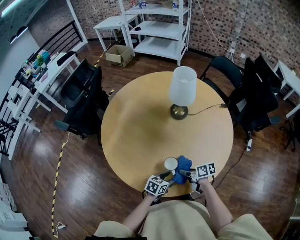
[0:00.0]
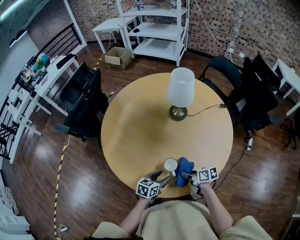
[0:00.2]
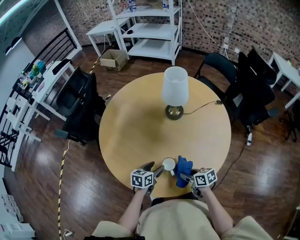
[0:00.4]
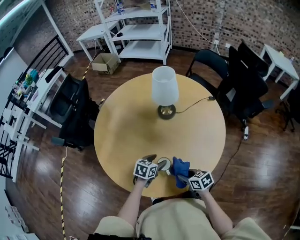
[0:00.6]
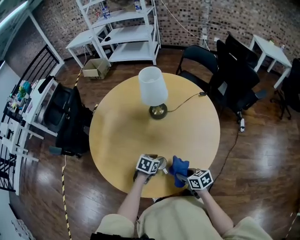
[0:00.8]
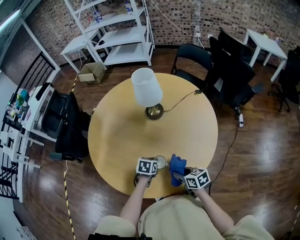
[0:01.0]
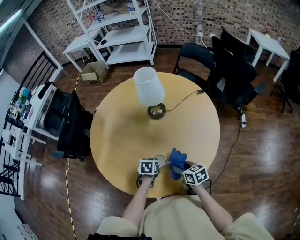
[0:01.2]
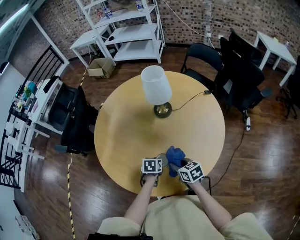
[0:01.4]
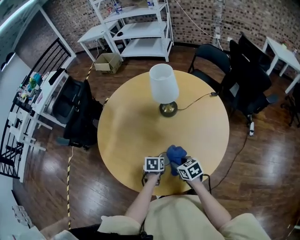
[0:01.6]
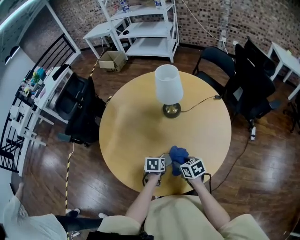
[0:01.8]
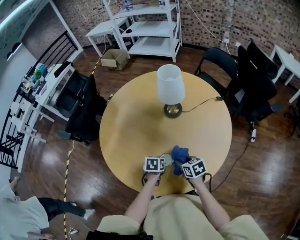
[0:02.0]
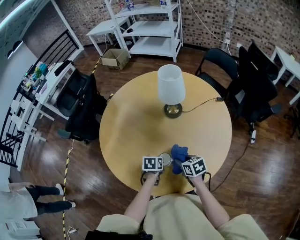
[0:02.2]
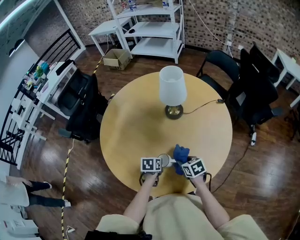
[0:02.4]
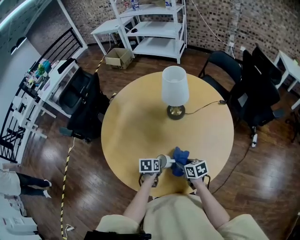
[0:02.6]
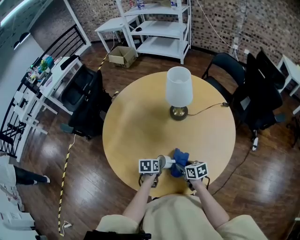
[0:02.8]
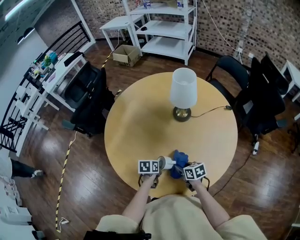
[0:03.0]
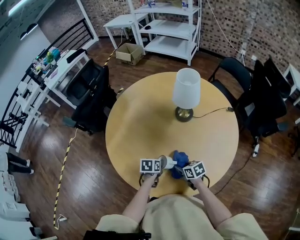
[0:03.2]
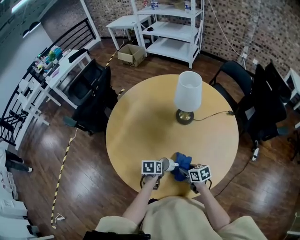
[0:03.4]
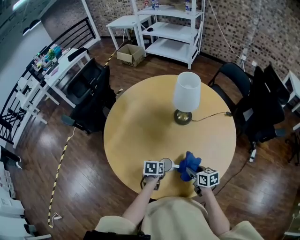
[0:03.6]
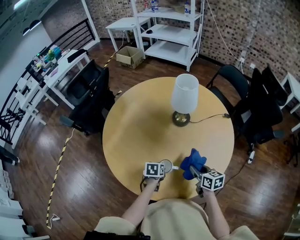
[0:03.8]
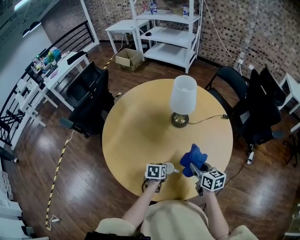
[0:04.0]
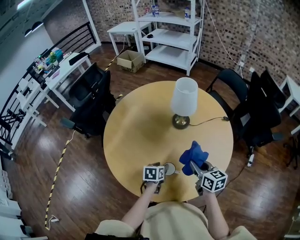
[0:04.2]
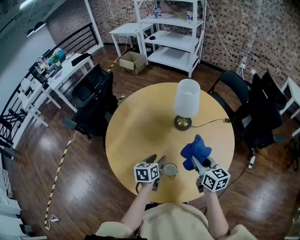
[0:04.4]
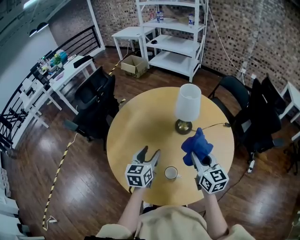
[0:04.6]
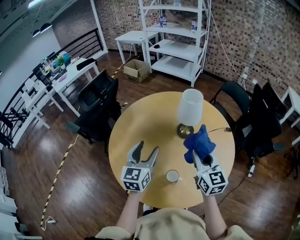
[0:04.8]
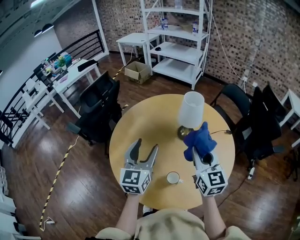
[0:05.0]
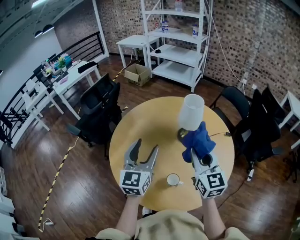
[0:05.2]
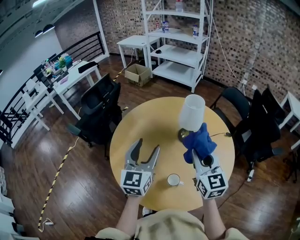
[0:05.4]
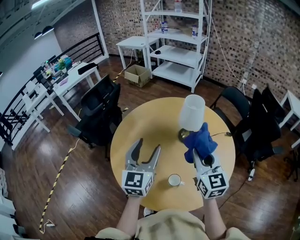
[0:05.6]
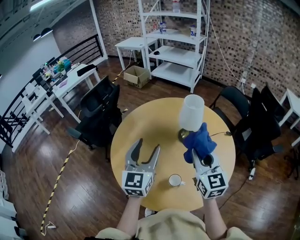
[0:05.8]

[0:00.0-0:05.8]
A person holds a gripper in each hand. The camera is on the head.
0:00.0 to 0:01.4: The left gripper moves about 10 cm, changes its angle by roughly 30 degrees, and closes its fingers; the right gripper is displaced upward by some 5 cm, and turns by roughly 30 degrees.
0:01.4 to 0:02.8: The right gripper ends up roughly 5 cm from where it was.
0:02.8 to 0:04.4: The grippers both shift upward by some 15 cm. The left gripper rotates about 30 degrees, and opens. The right gripper turns by some 30 degrees.
0:04.4 to 0:05.8: The right gripper is displaced upward by some 15 cm, and swivels approximately 30 degrees, while the left gripper travels upward by about 25 cm, and points its fingers some 30 degrees further upward.

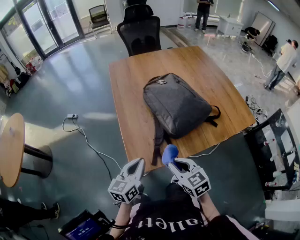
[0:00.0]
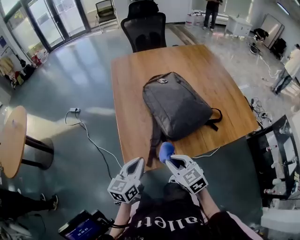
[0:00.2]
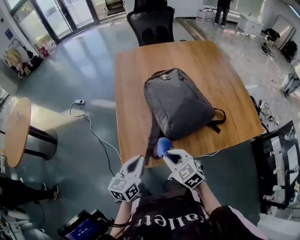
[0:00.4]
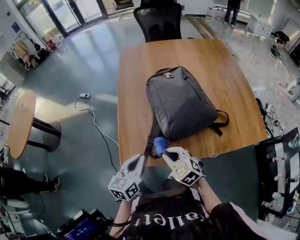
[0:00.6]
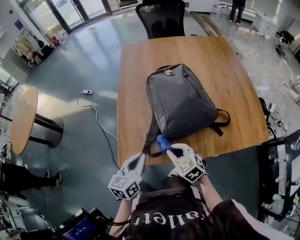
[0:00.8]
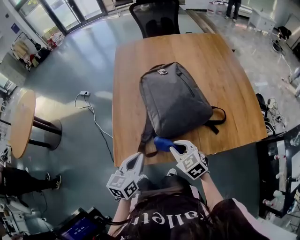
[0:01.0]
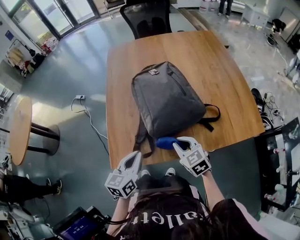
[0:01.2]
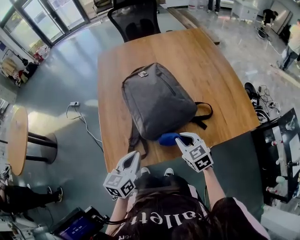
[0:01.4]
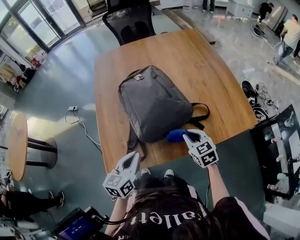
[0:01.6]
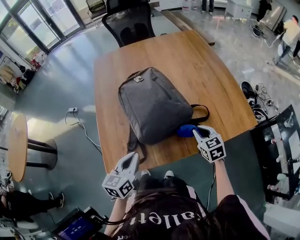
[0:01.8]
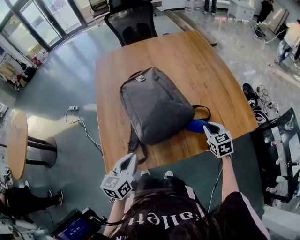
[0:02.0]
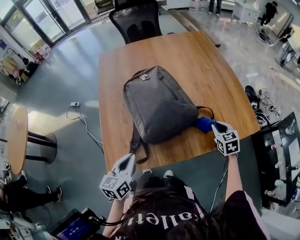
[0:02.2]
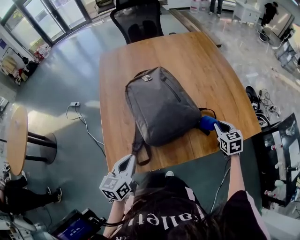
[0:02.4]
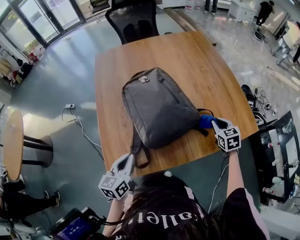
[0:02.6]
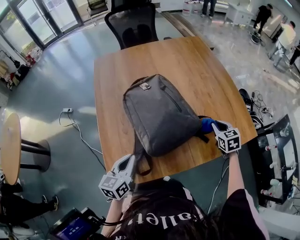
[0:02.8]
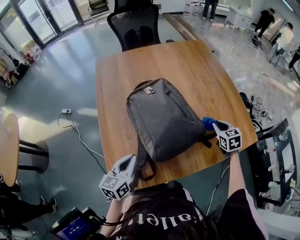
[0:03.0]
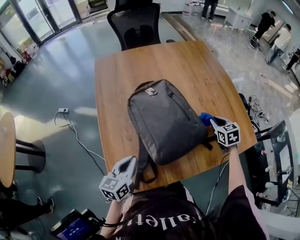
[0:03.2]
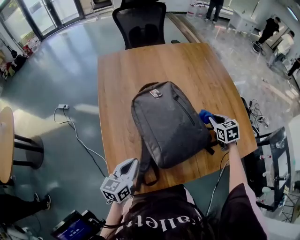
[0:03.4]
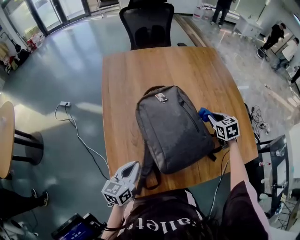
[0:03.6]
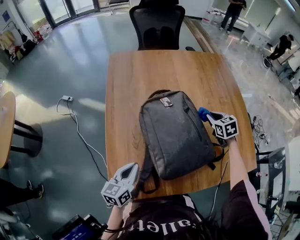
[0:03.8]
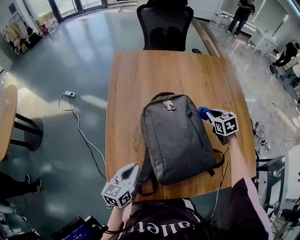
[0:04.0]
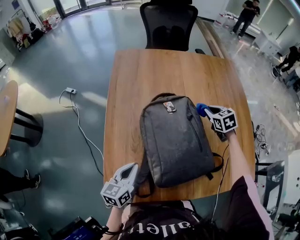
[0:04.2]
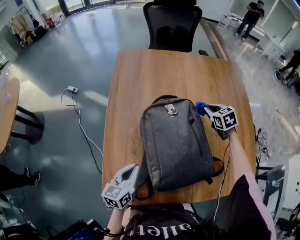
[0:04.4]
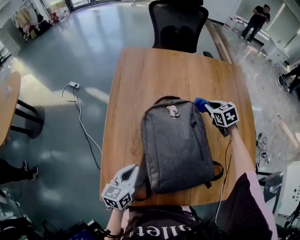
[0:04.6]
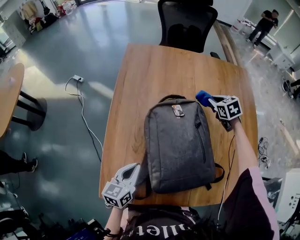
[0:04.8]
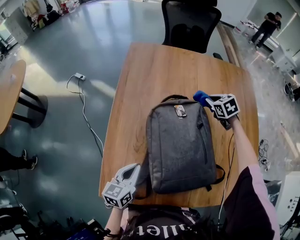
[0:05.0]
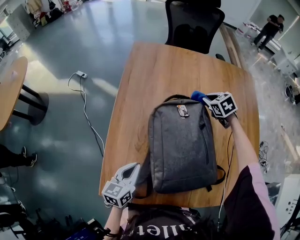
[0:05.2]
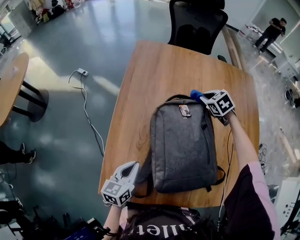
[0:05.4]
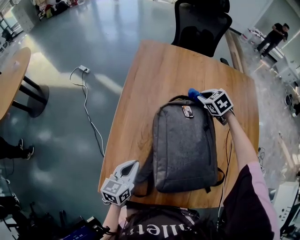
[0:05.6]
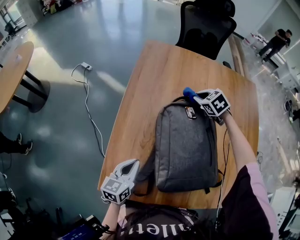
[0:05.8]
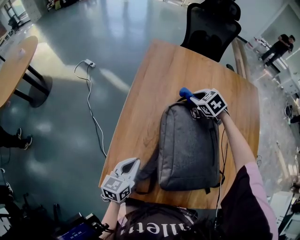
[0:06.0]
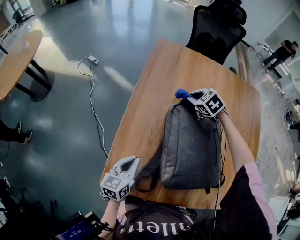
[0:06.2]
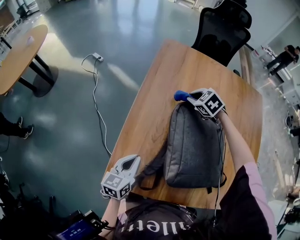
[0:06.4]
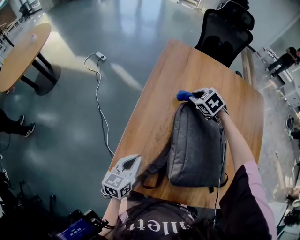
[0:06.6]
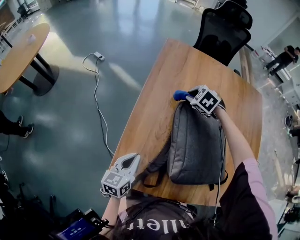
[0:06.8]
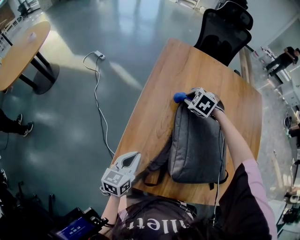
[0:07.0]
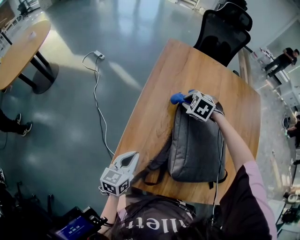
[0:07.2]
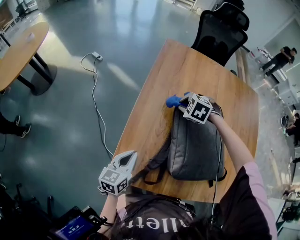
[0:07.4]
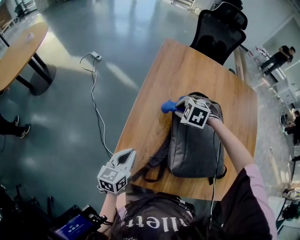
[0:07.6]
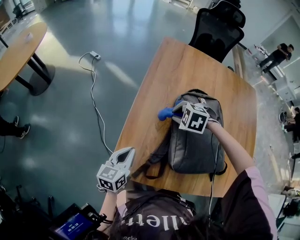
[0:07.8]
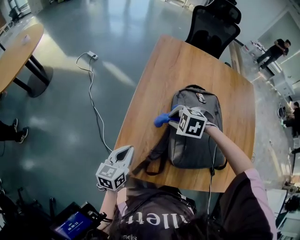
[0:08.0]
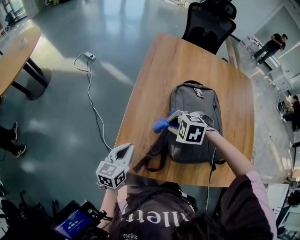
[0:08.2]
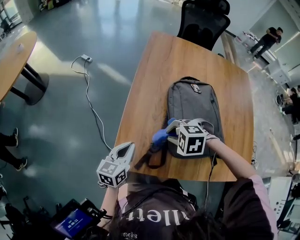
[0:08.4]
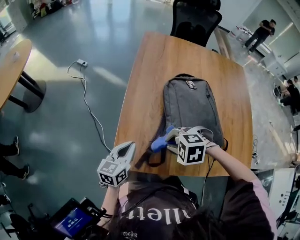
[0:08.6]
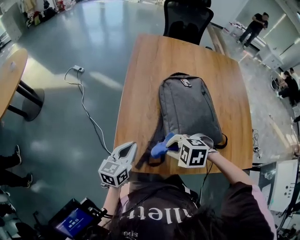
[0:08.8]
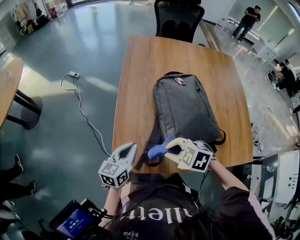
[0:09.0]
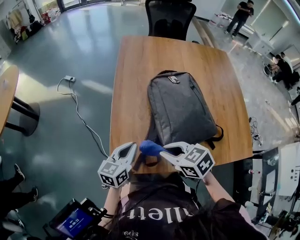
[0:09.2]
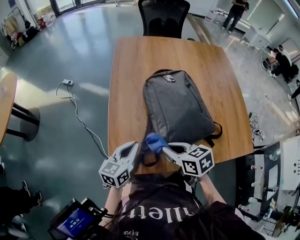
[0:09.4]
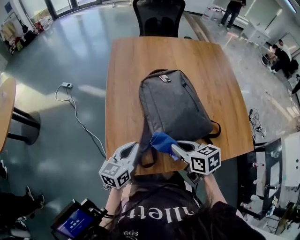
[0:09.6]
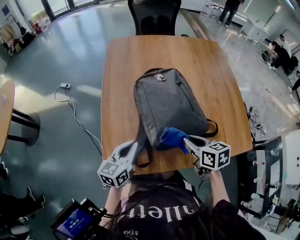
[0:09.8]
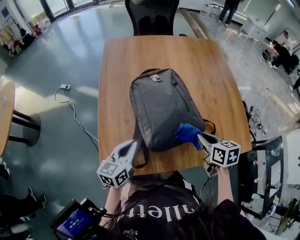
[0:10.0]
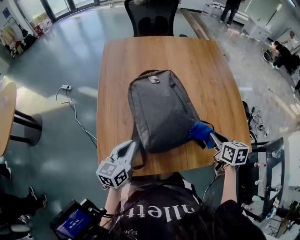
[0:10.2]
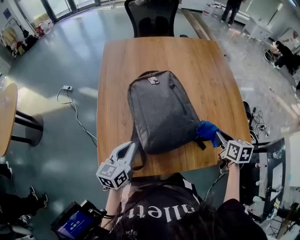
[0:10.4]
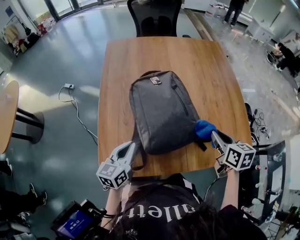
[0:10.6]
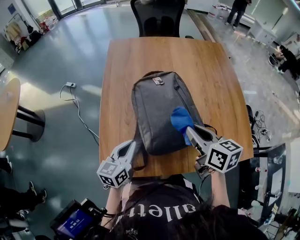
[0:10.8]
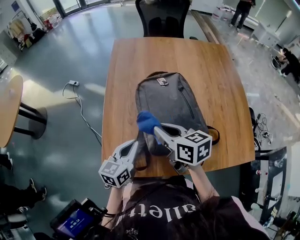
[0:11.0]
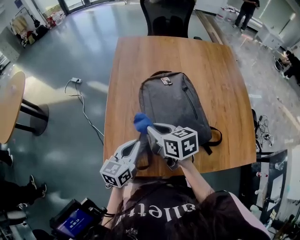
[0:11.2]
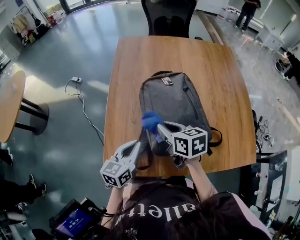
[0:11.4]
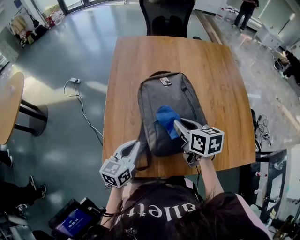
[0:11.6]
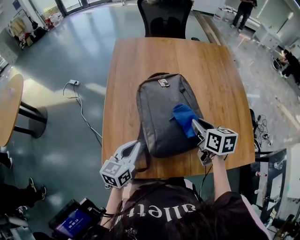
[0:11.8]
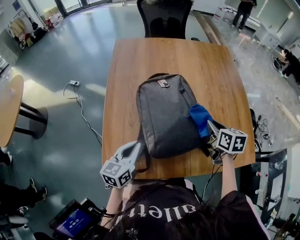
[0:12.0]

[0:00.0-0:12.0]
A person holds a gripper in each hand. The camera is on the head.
0:00.0 to 0:01.6: The left gripper travels to the right by some 20 cm. Meanwhile the right gripper shifts about 30 cm to the right and forward.
0:01.6 to 0:03.0: The right gripper is displaced forward and to the right by approximately 20 cm, while the left gripper heads forward and to the left, covering about 10 cm.
0:03.0 to 0:04.4: The left gripper shifts roughly 5 cm forward; the right gripper moves forward and to the left, some 30 cm, and rotates some 30 degrees.
0:04.4 to 0:06.0: The left gripper heads to the left, covering roughly 5 cm. The right gripper goes approximately 25 cm to the left, and changes its angle by roughly 30 degrees.
0:06.0 to 0:07.6: The left gripper ends up some 10 cm from where it was. The right gripper shifts by about 20 cm, and rotates some 30 degrees.
0:07.6 to 0:09.0: The right gripper moves about 30 cm, and swivels approximately 30 degrees. The left gripper changes place by roughly 5 cm.
0:09.0 to 0:10.4: The left gripper shifts by roughly 10 cm. Meanwhile the right gripper ends up about 40 cm from where it was, and rotates around the line of its fingers by some 70 degrees, clockwise from behind.
0:10.4 to 0:12.0: The right gripper heads forward, covering some 10 cm, and travels to the left and back again, approximately 35 cm each way.

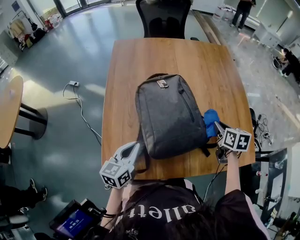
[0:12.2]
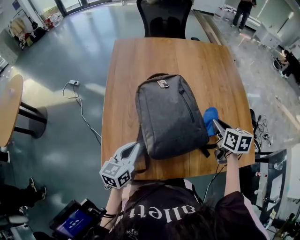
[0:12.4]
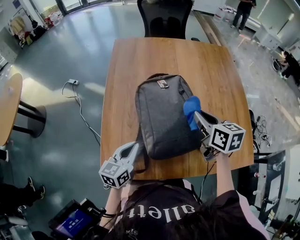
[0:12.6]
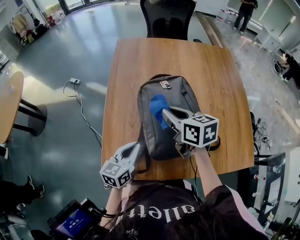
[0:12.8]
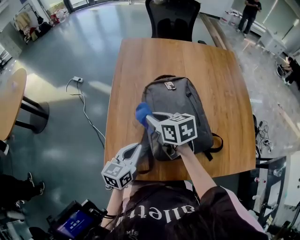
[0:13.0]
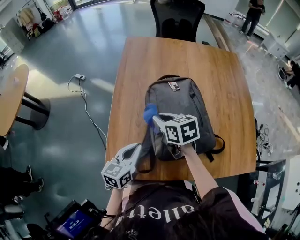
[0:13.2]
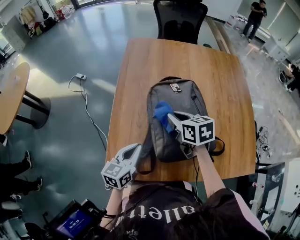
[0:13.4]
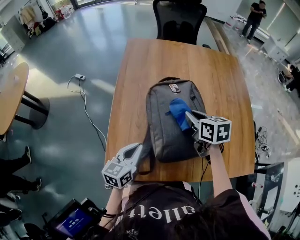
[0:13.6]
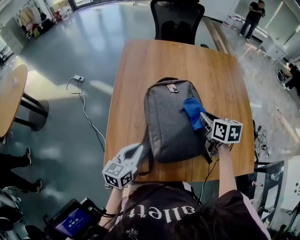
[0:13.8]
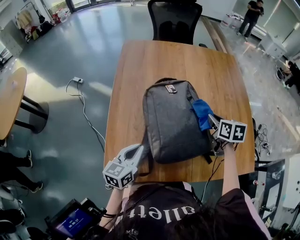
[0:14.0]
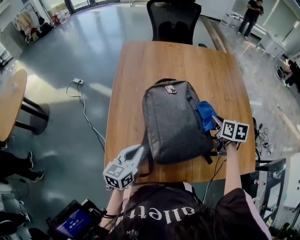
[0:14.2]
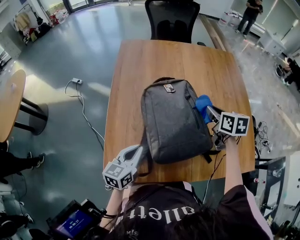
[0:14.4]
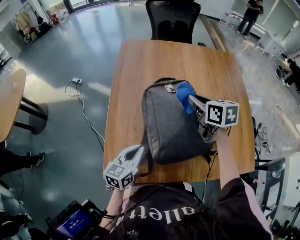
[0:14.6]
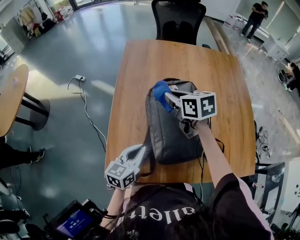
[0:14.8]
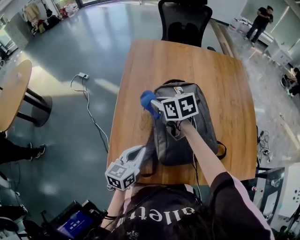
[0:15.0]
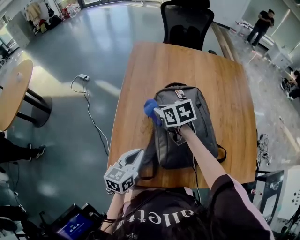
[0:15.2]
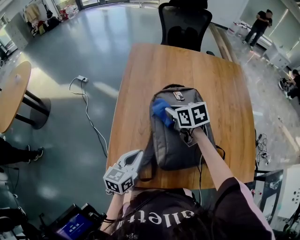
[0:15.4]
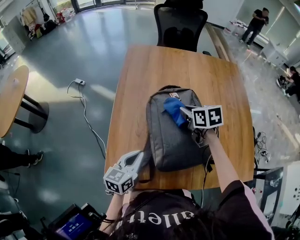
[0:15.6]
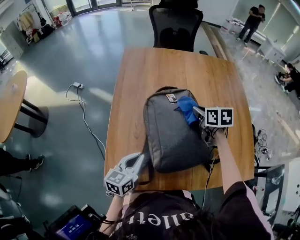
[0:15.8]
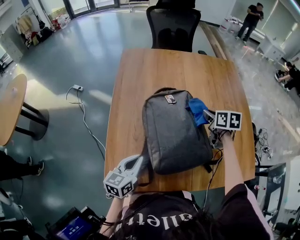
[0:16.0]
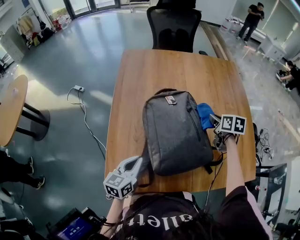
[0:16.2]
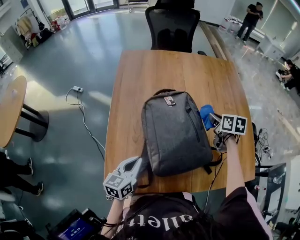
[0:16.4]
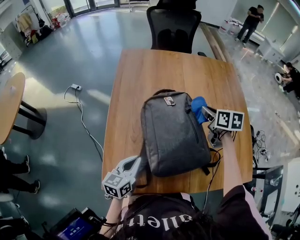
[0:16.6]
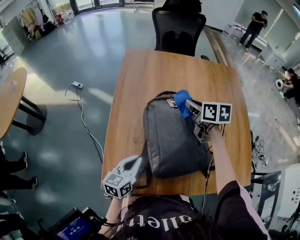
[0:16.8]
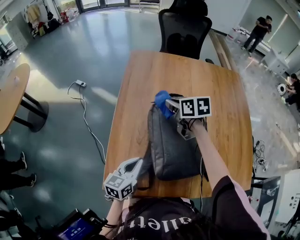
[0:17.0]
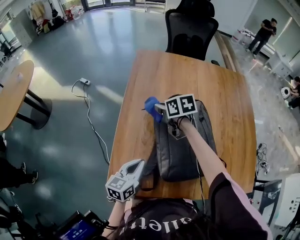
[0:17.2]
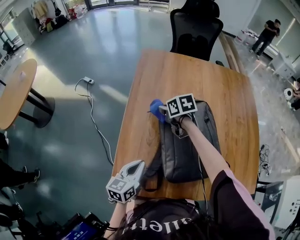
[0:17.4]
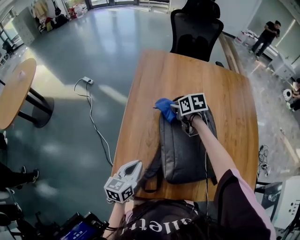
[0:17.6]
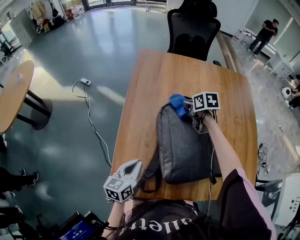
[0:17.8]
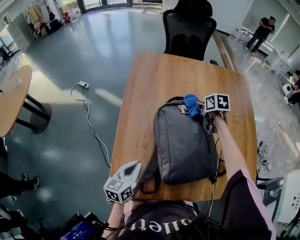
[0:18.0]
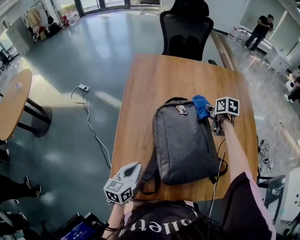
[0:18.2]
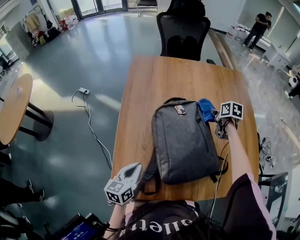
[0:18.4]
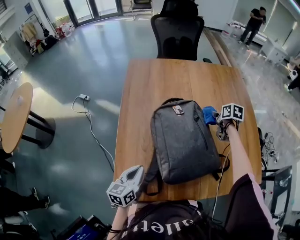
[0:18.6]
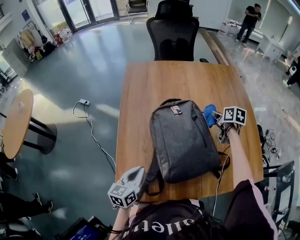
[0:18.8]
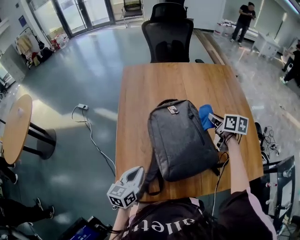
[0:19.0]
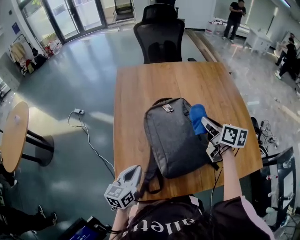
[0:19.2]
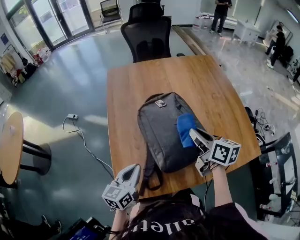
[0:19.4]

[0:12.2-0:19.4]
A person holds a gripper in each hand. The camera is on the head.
0:12.2 to 0:13.6: The right gripper goes some 20 cm to the left, and swivels approximately 20 degrees.
0:13.6 to 0:15.0: The right gripper moves to the left, approximately 15 cm.
0:15.0 to 0:16.6: The right gripper is displaced to the right by some 25 cm, and turns by roughly 30 degrees.
0:16.6 to 0:18.0: The right gripper travels forward and downward by about 15 cm, and reaches roughly 30 cm to the left, then returns, while the left gripper heads to the left, covering approximately 5 cm.
0:18.0 to 0:19.4: The left gripper moves upward, about 5 cm. Meanwhile the right gripper heads backward and upward, covering approximately 30 cm, and points its fingers about 40 degrees further upward.
